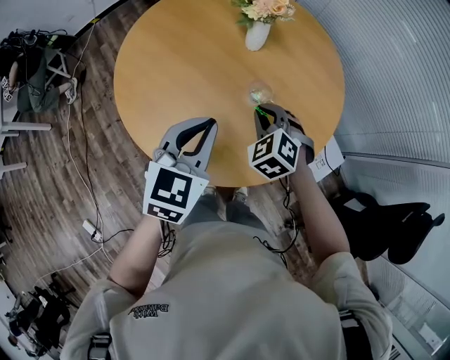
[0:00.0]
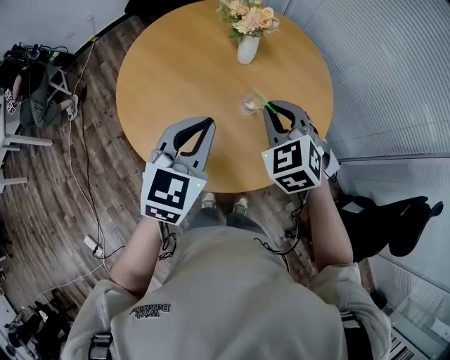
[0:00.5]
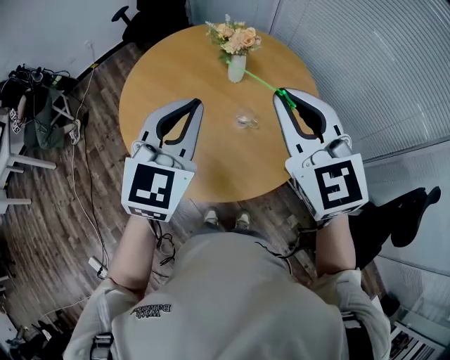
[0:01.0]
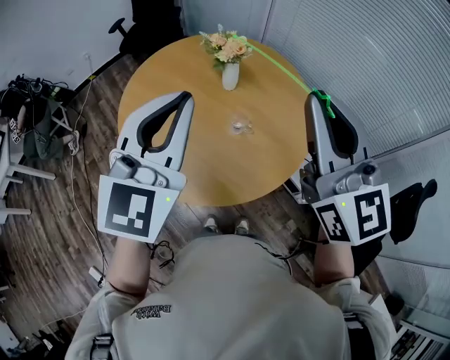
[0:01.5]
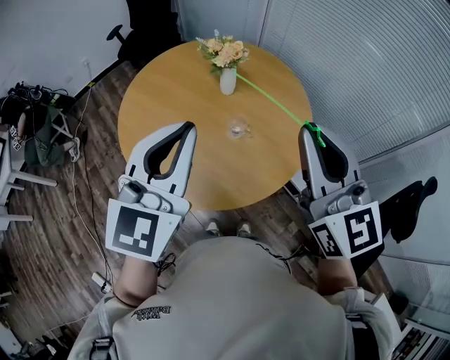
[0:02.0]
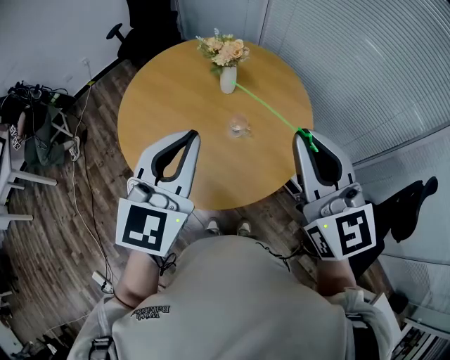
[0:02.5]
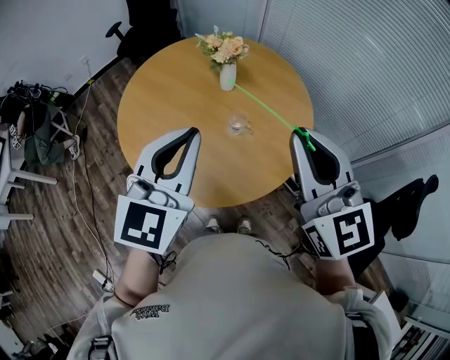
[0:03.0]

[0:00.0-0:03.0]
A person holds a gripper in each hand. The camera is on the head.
0:00.0 to 0:01.5: The right gripper moves upward, about 40 cm, and points its fingers some 60 degrees further upward. Meanwhile the left gripper shifts roughly 25 cm upward, and changes its angle by some 30 degrees.
0:01.5 to 0:03.0: The two grippers go approximately 5 cm downward.

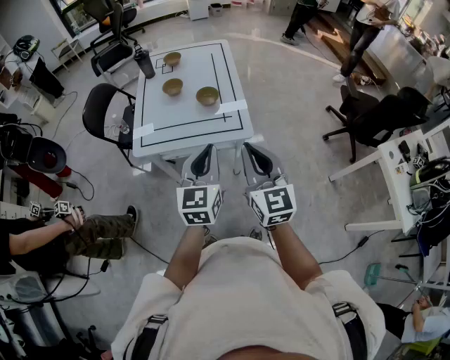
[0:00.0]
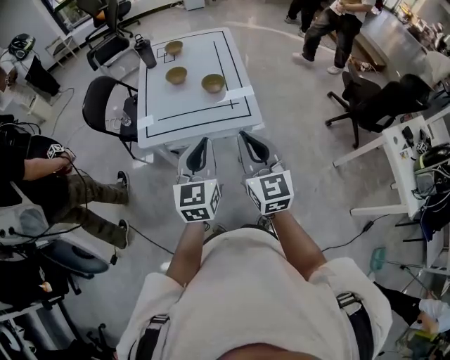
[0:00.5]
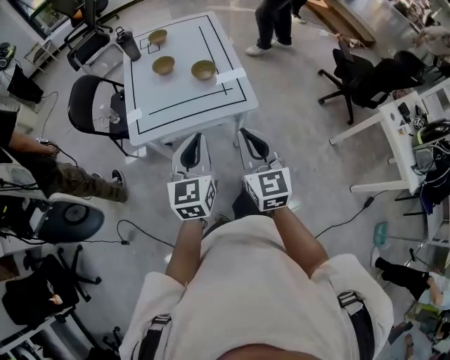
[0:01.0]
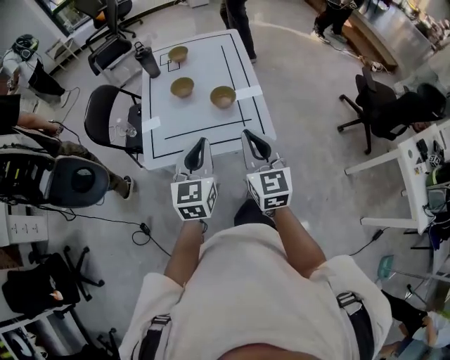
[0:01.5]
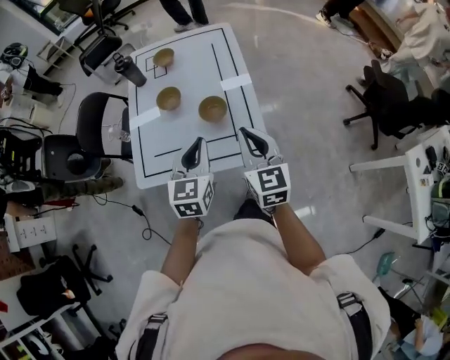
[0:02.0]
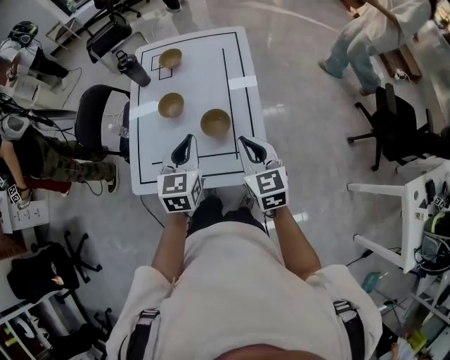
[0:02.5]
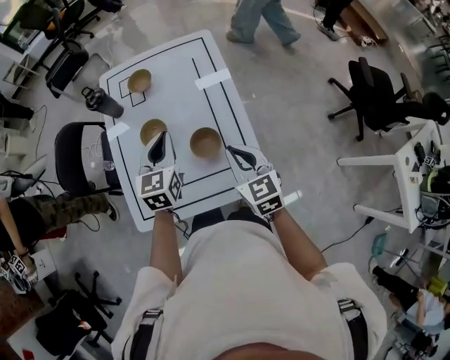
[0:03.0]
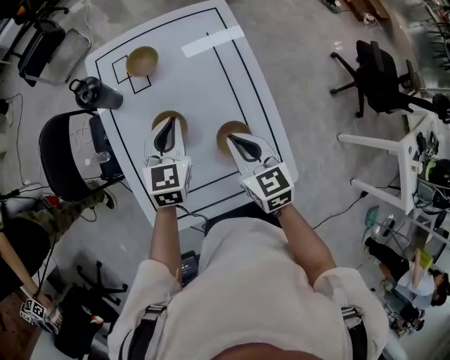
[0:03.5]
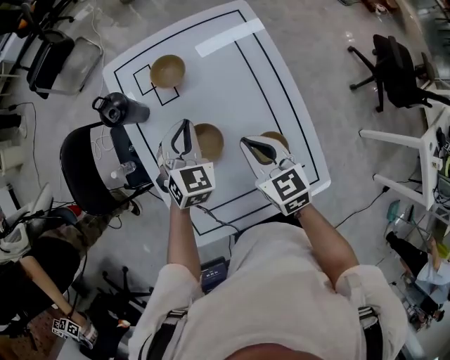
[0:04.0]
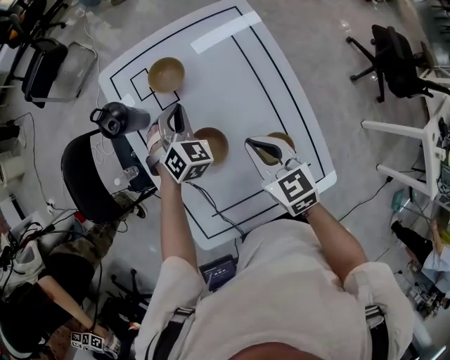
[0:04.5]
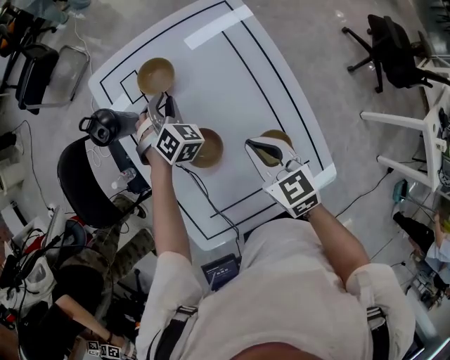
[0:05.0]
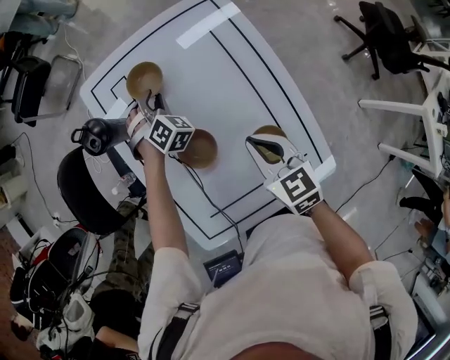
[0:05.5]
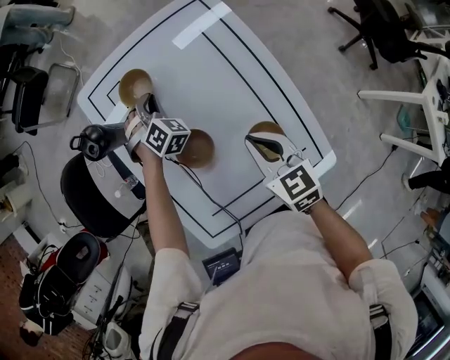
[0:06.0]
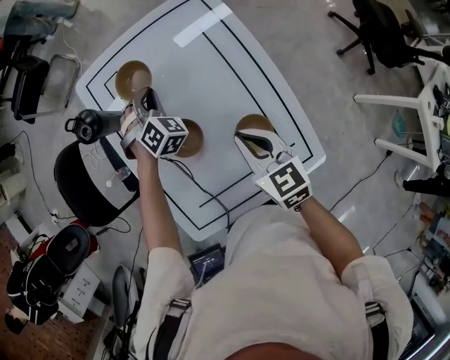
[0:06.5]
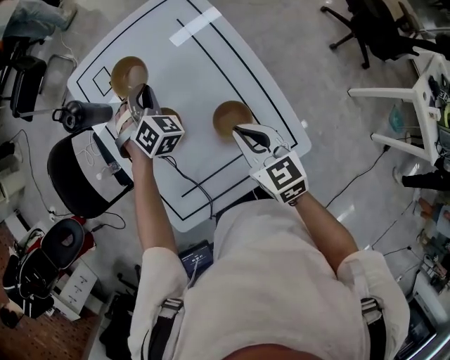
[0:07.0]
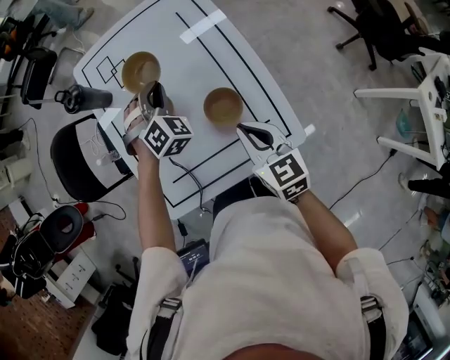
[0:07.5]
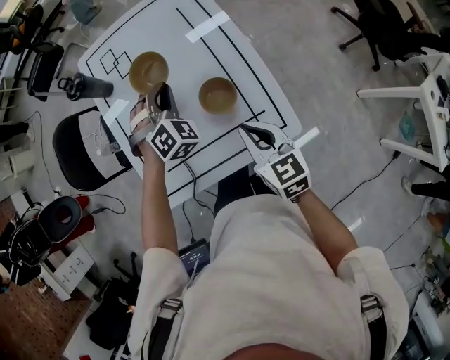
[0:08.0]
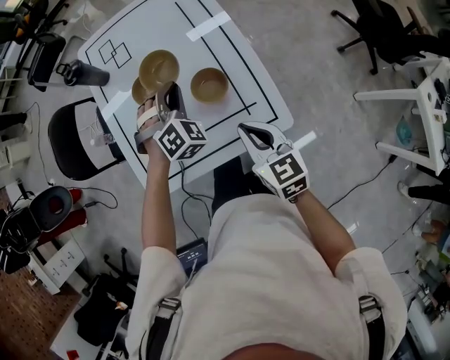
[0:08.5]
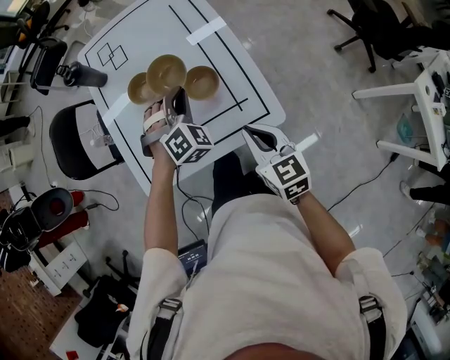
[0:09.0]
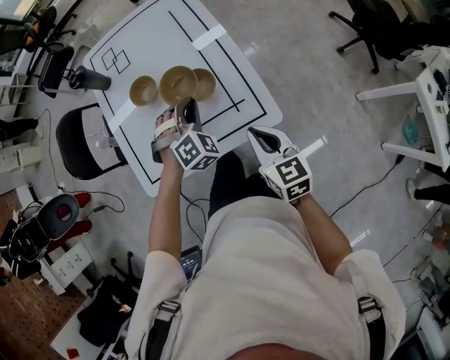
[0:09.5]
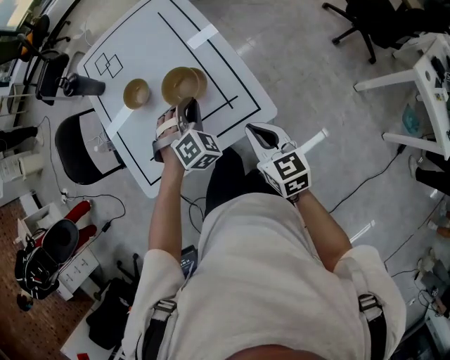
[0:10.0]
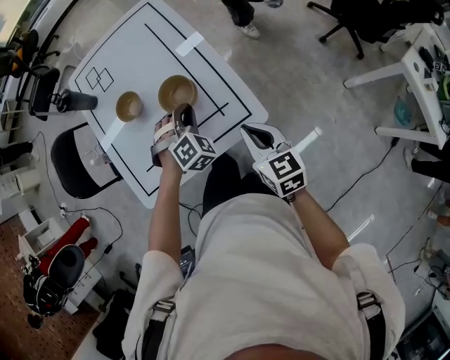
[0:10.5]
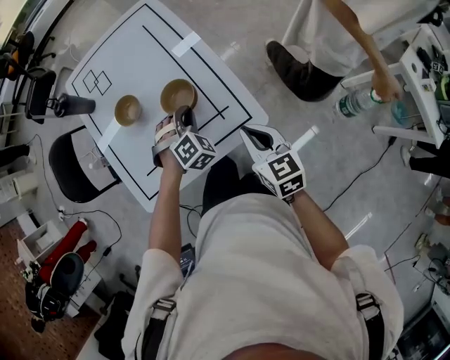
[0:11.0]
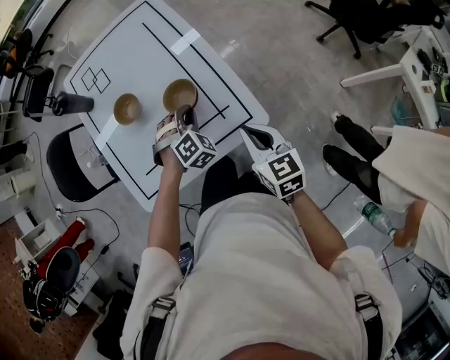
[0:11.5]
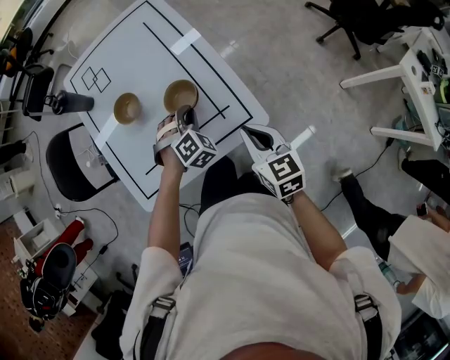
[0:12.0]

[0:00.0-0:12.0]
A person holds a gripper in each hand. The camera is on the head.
0:00.0 to 0:02.0: Both grippers travel together forward, approximately 30 cm.
0:02.0 to 0:04.0: The right gripper is displaced forward, to the left and downward by approximately 40 cm, and swivels some 20 degrees. The left gripper travels forward and to the left by roughly 40 cm, and changes its angle by some 30 degrees.
0:04.0 to 0:06.0: The left gripper goes approximately 15 cm forward and downward, turns by about 30 degrees, and opens and closes again, while the right gripper changes place by approximately 5 cm.
0:06.0 to 0:08.0: The right gripper heads backward, covering some 20 cm. The left gripper moves backward and upward, about 30 cm.
0:08.0 to 0:10.0: The grippers both shift backward and to the right by about 15 cm.
0:10.0 to 0:12.0: The left gripper goes roughly 5 cm downward.

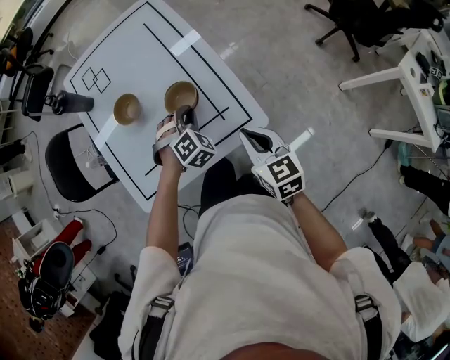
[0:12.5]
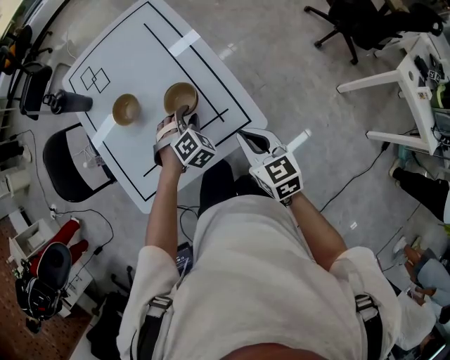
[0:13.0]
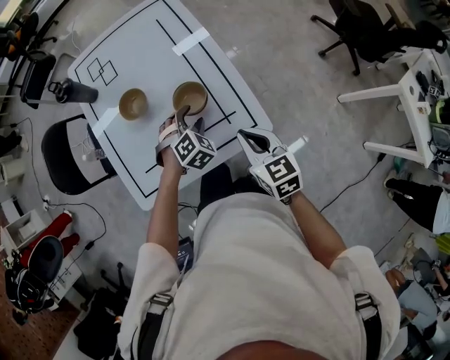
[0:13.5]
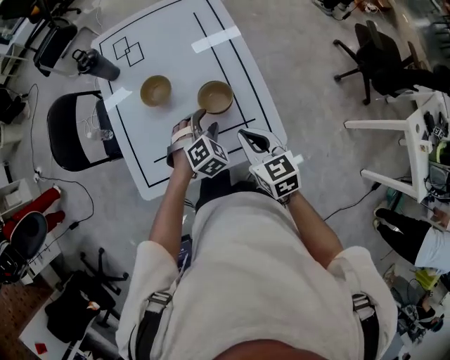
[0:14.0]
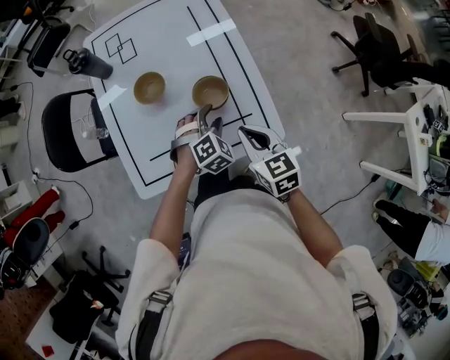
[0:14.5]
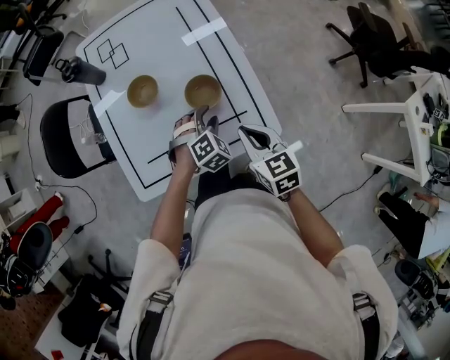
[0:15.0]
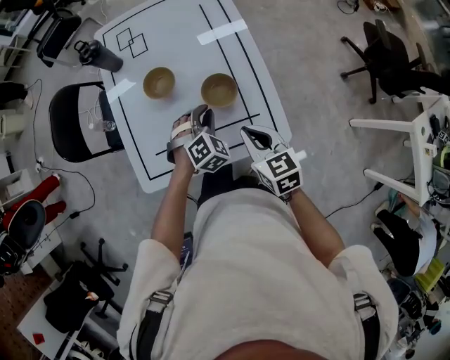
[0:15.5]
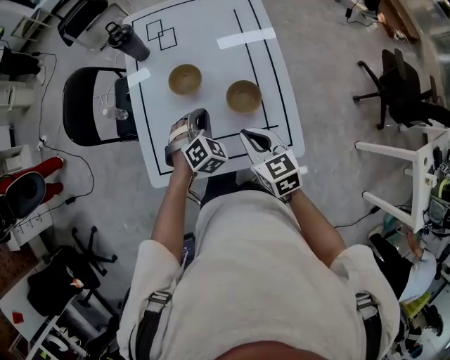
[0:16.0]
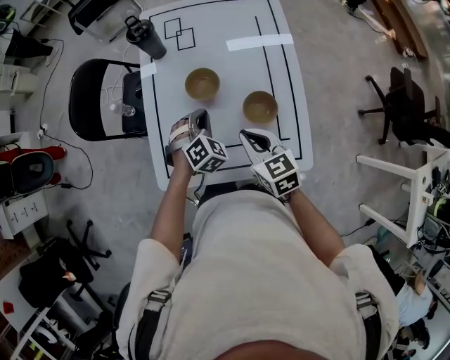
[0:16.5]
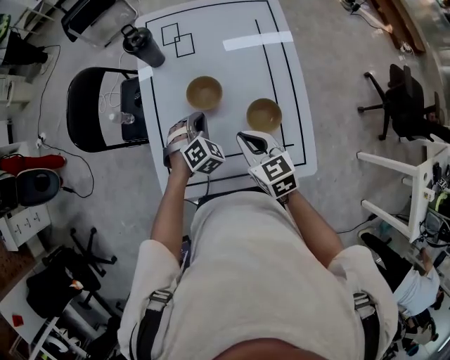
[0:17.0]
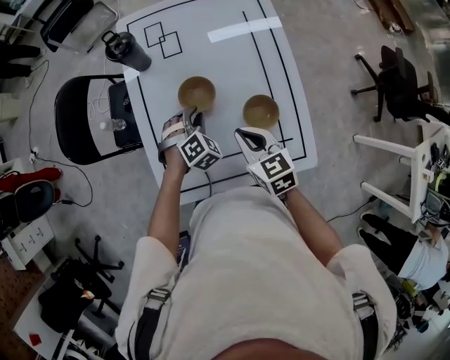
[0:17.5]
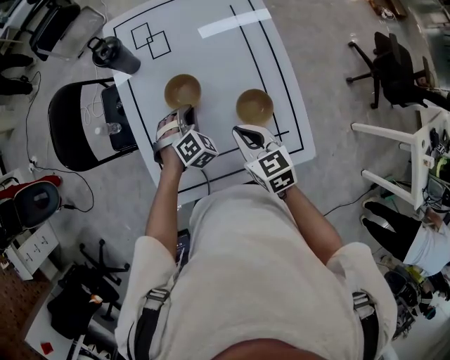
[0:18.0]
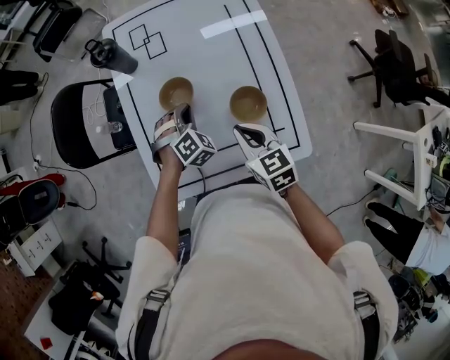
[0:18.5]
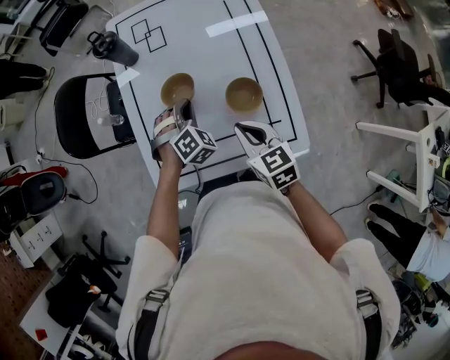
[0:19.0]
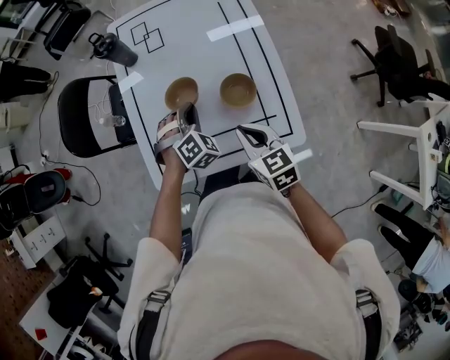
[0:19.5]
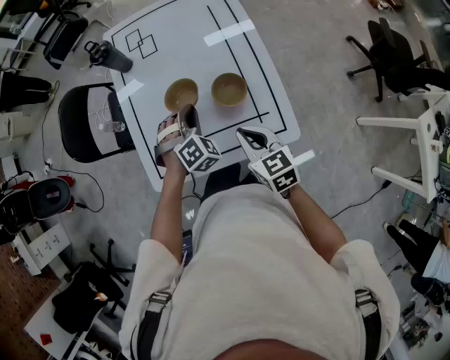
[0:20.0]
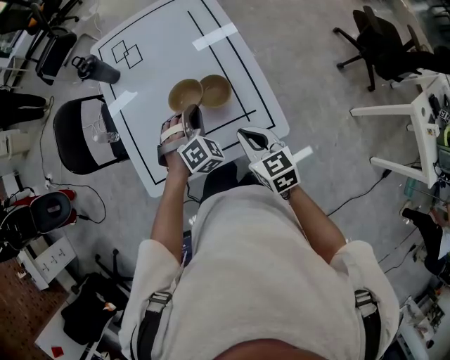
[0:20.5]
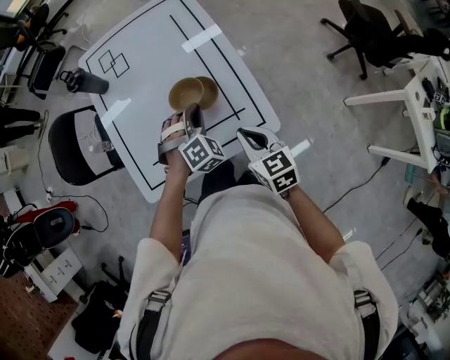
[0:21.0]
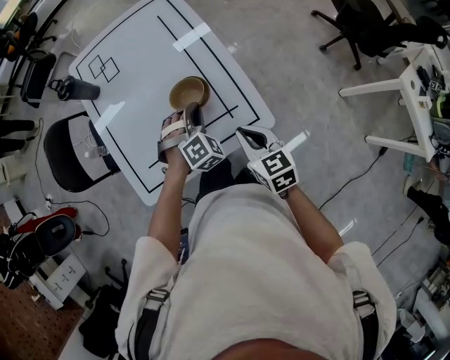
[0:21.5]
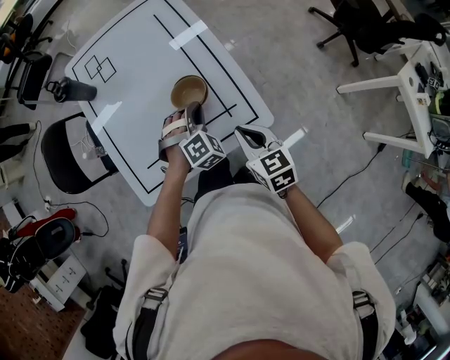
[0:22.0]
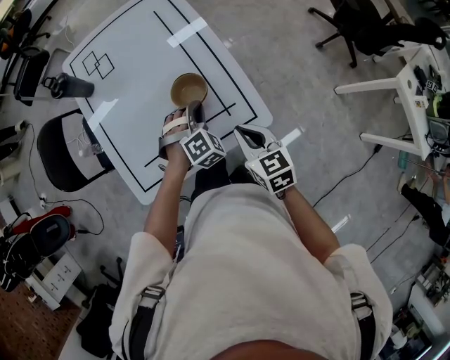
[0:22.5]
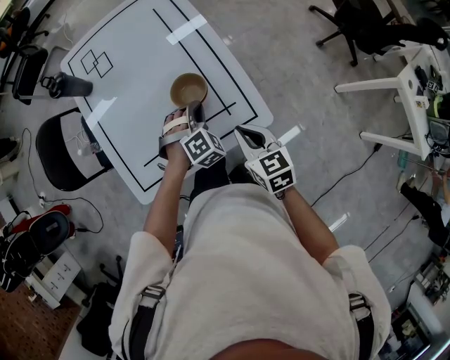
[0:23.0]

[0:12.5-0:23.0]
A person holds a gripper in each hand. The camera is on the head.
0:12.5 to 0:14.5: The right gripper travels to the left and forward by roughly 10 cm. Meanwhile the left gripper opens its fingers.
0:14.5 to 0:16.5: Both grippers move to the left and forward, approximately 15 cm. The left gripper changes its angle by roughly 20 degrees, and closes.
0:19.0 to 0:21.0: The right gripper goes approximately 15 cm backward and to the right; the left gripper goes approximately 15 cm to the right and backward.
0:21.0 to 0:23.0: The left gripper changes place by roughly 5 cm.

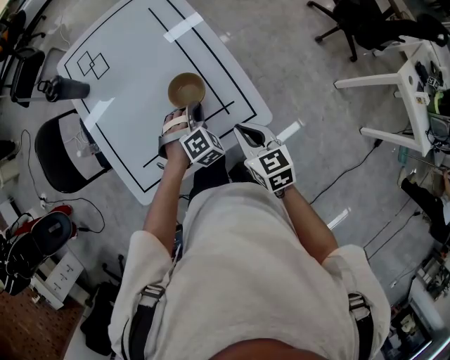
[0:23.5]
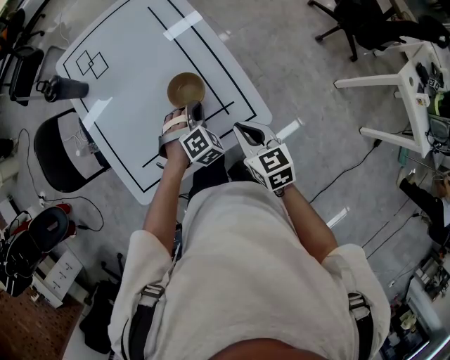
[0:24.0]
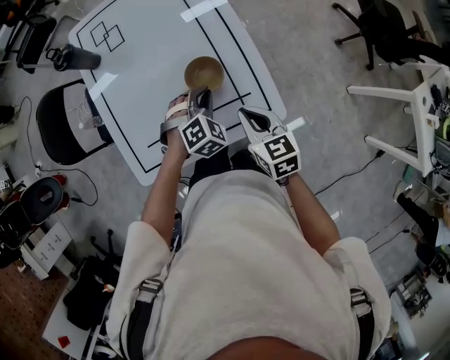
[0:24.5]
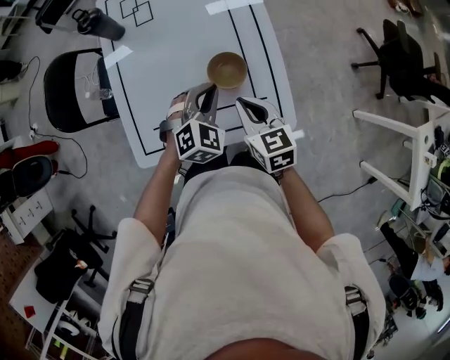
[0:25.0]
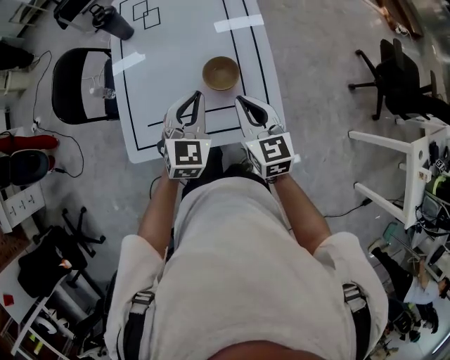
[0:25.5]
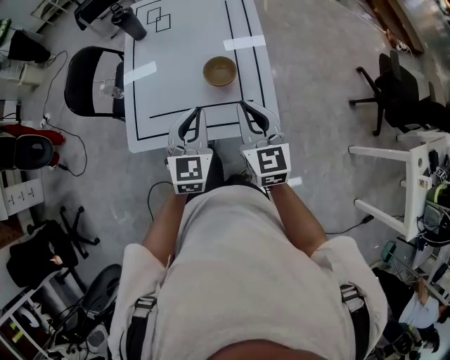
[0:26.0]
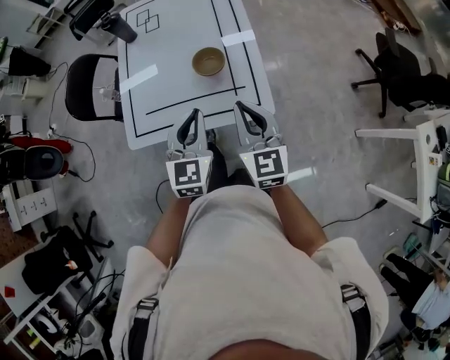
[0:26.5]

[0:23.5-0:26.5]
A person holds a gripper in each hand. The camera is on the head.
0:23.5 to 0:25.0: The right gripper heads forward and to the left, covering roughly 10 cm, while the left gripper travels upward and to the left by approximately 10 cm, and turns by some 30 degrees.
0:25.0 to 0:26.5: The right gripper shifts approximately 20 cm backward, upward and to the right, and turns by about 30 degrees; the left gripper goes approximately 20 cm backward and upward, and turns by about 40 degrees.
